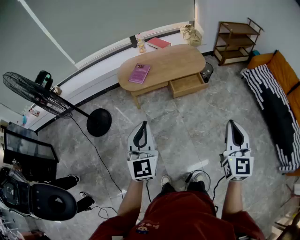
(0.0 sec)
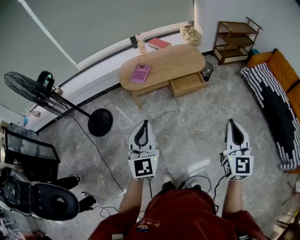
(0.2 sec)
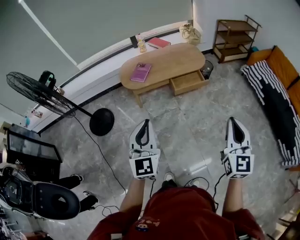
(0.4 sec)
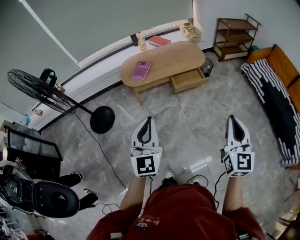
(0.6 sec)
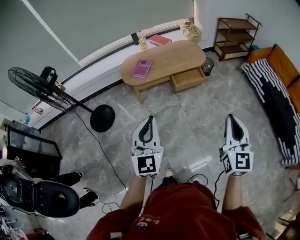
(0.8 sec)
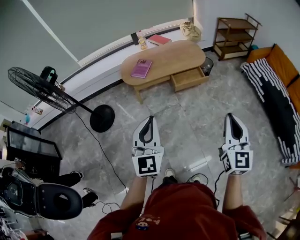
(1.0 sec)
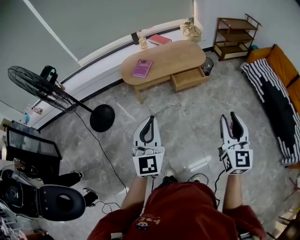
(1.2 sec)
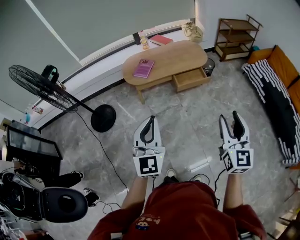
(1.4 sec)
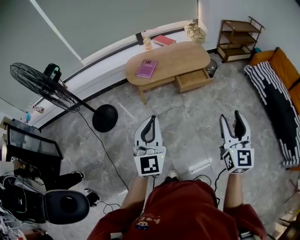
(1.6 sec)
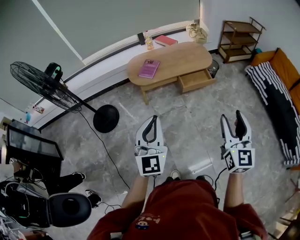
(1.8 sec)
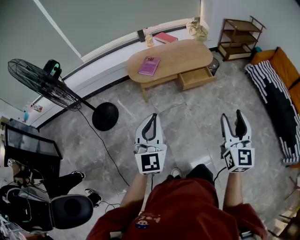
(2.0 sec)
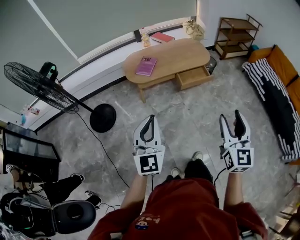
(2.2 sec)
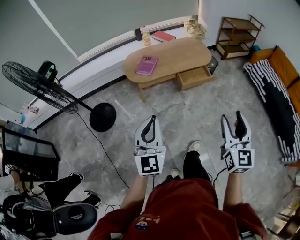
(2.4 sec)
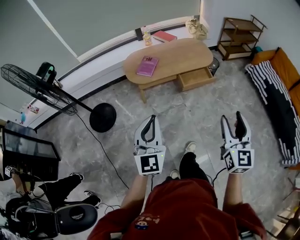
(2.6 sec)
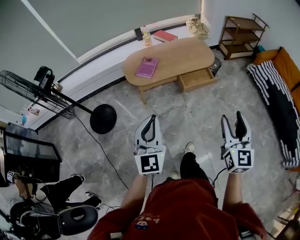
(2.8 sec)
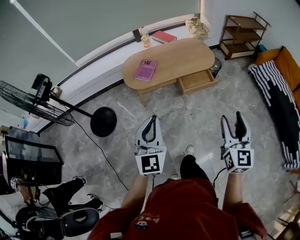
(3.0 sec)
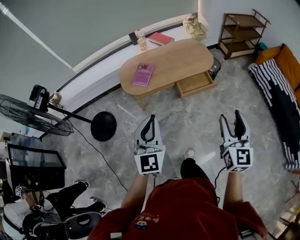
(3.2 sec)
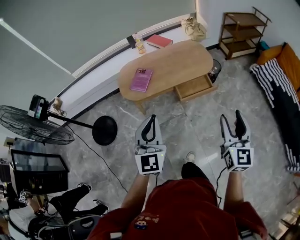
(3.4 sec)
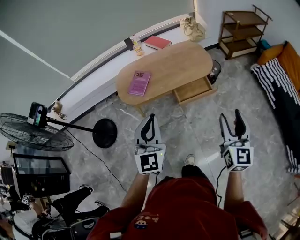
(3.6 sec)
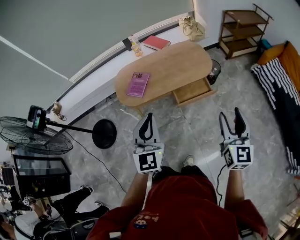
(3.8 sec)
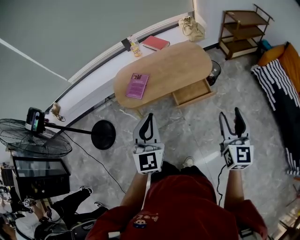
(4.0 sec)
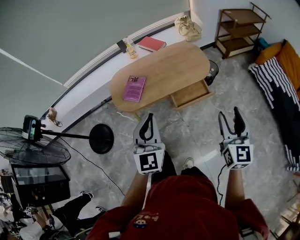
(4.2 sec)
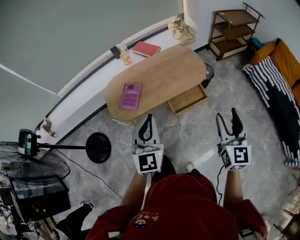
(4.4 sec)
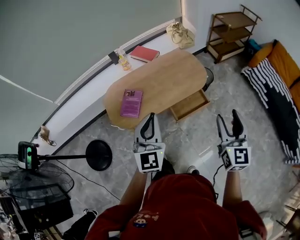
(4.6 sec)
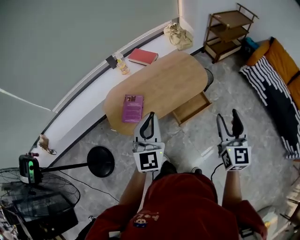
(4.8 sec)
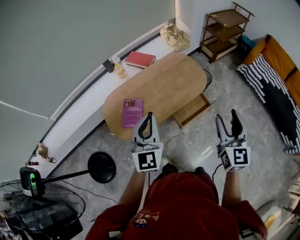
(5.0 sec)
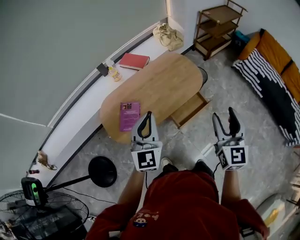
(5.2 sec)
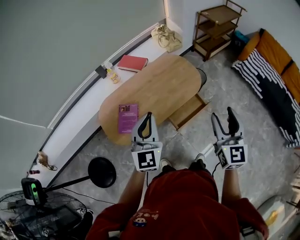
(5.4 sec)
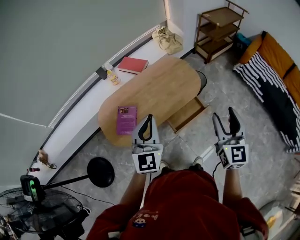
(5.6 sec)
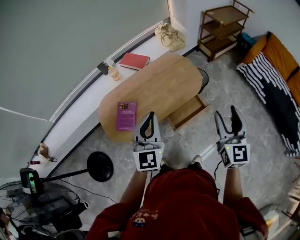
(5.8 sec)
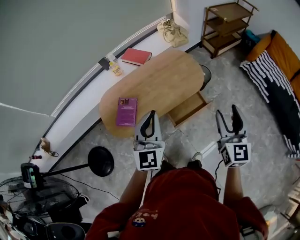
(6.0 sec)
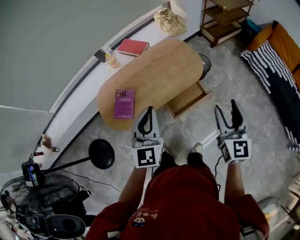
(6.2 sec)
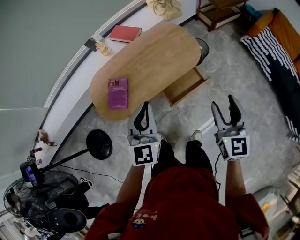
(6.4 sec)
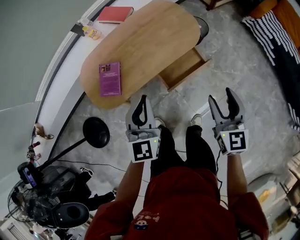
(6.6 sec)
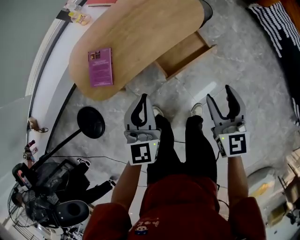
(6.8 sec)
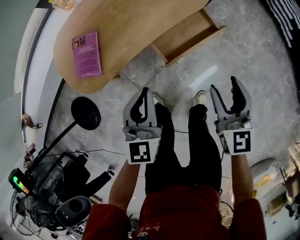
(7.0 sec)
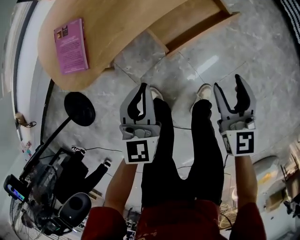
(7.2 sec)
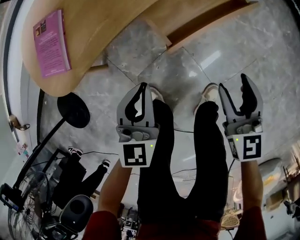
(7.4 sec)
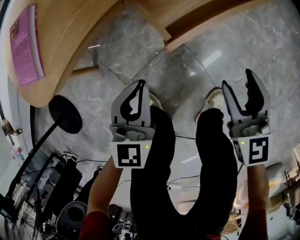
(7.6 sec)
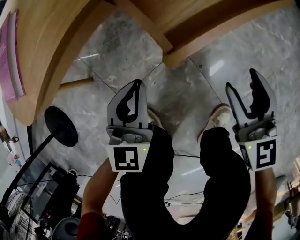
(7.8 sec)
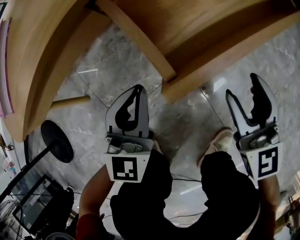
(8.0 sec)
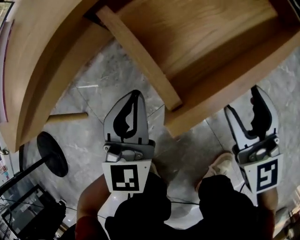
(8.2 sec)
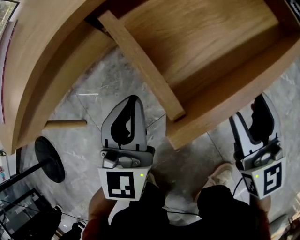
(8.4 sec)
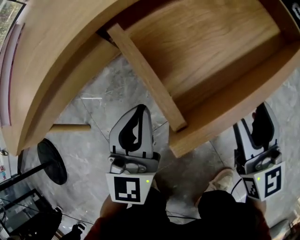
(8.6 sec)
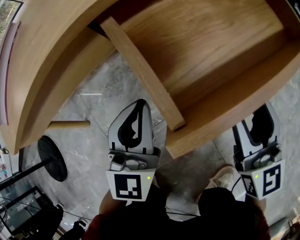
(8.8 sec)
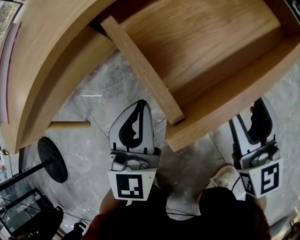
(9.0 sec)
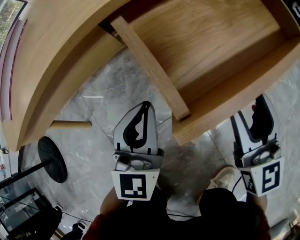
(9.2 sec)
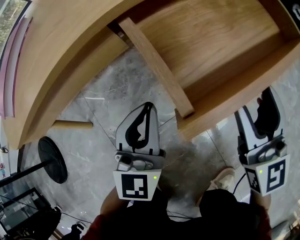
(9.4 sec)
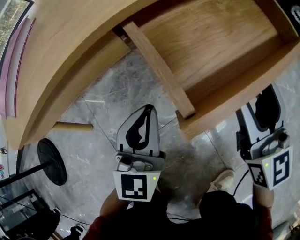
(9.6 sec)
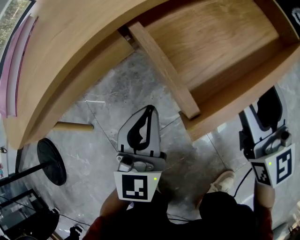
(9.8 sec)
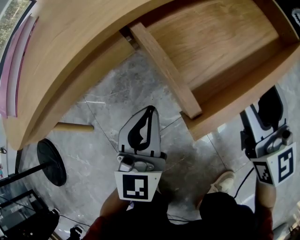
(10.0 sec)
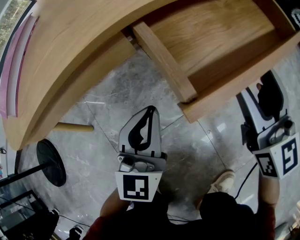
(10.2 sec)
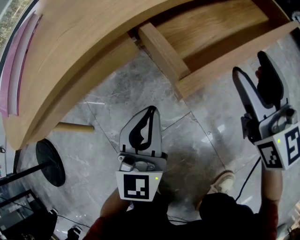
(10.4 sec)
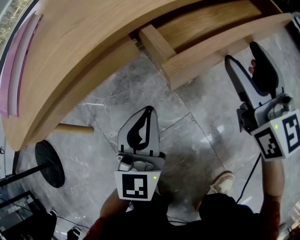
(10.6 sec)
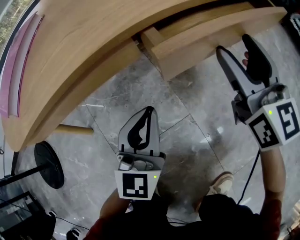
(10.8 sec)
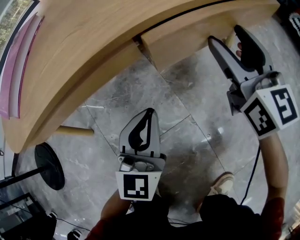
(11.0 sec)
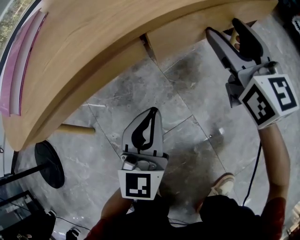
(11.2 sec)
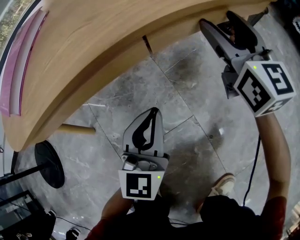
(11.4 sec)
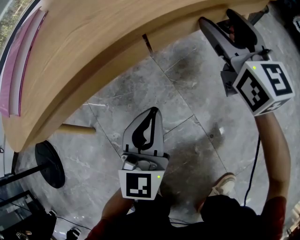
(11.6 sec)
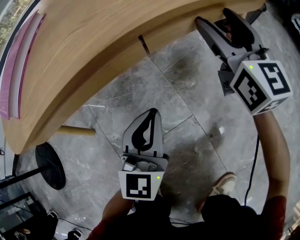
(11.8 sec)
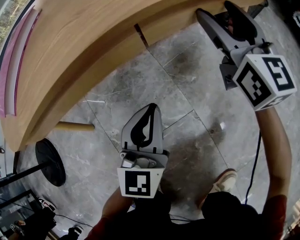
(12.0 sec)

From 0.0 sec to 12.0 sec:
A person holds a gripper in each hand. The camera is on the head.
From 0.0 sec to 1.6 sec: The right gripper heads to the left, covering about 5 cm, and opens, while the left gripper is displaced backward by approximately 5 cm.
From 1.6 sec to 3.0 sec: Both grippers move forward, approximately 15 cm.
From 3.0 sec to 4.4 sec: Both grippers move forward, some 30 cm.
From 4.4 sec to 6.0 sec: Both grippers travel together forward, approximately 15 cm.
From 6.0 sec to 7.6 sec: The two grippers go some 60 cm downward. The right gripper rotates about 20 degrees. Meanwhile the left gripper turns by roughly 30 degrees.
From 7.6 sec to 9.0 sec: The grippers both shift downward and forward by roughly 15 cm. The left gripper rotates about 20 degrees.
From 9.0 sec to 10.4 sec: The right gripper travels forward and upward by roughly 10 cm.
From 10.4 sec to 12.0 sec: The right gripper travels forward by some 10 cm.

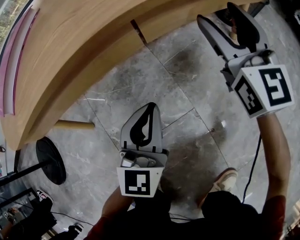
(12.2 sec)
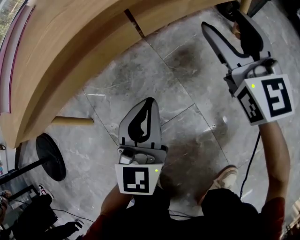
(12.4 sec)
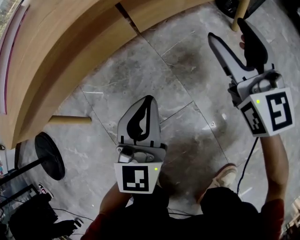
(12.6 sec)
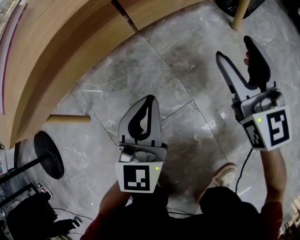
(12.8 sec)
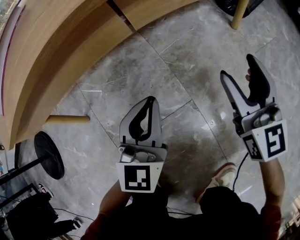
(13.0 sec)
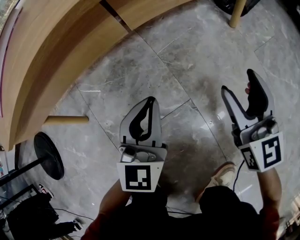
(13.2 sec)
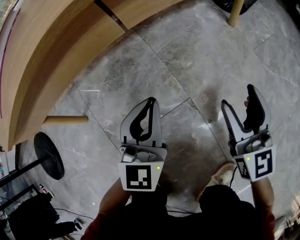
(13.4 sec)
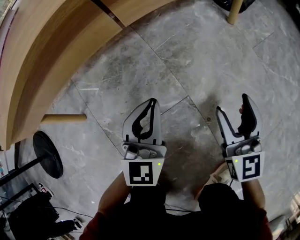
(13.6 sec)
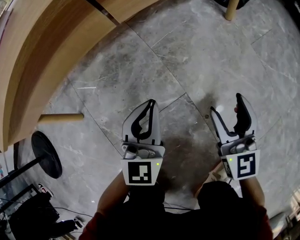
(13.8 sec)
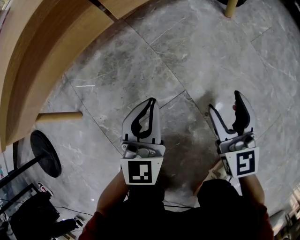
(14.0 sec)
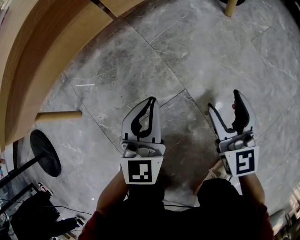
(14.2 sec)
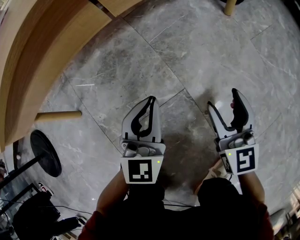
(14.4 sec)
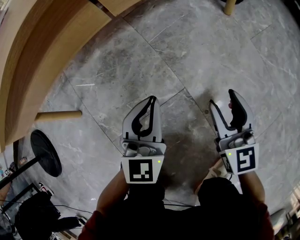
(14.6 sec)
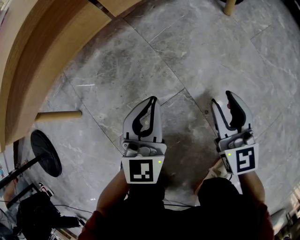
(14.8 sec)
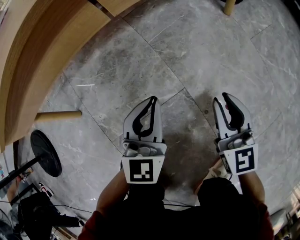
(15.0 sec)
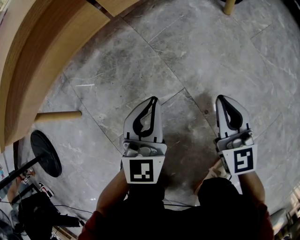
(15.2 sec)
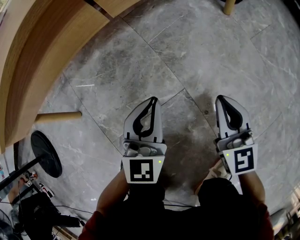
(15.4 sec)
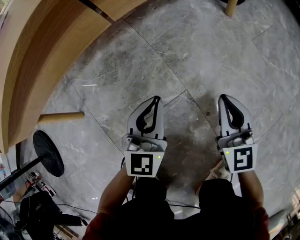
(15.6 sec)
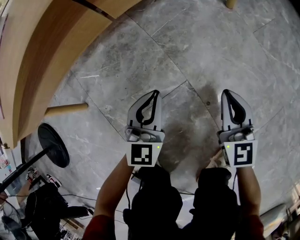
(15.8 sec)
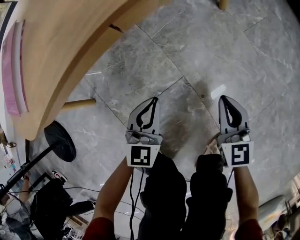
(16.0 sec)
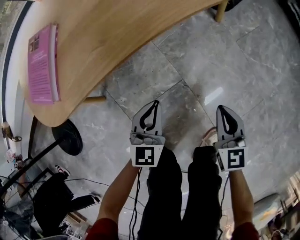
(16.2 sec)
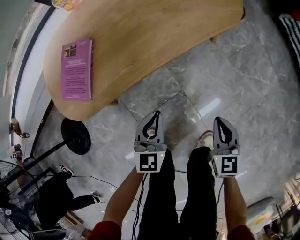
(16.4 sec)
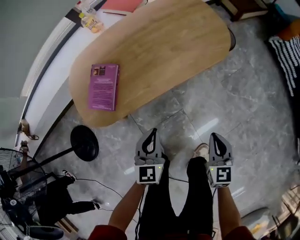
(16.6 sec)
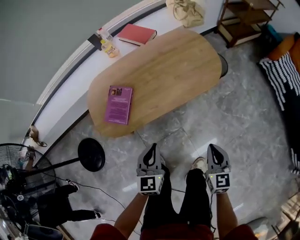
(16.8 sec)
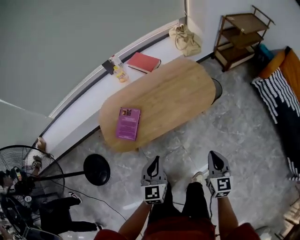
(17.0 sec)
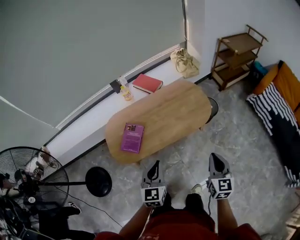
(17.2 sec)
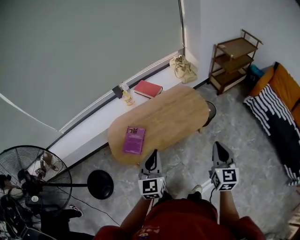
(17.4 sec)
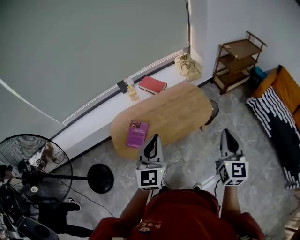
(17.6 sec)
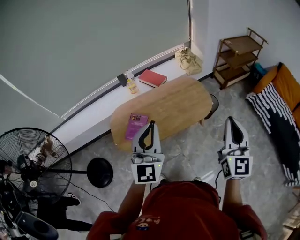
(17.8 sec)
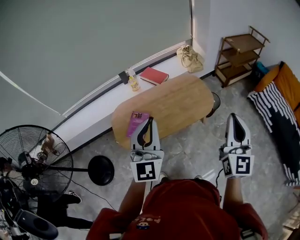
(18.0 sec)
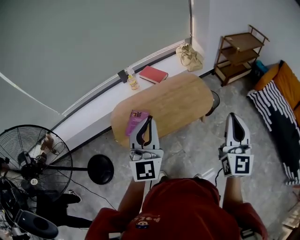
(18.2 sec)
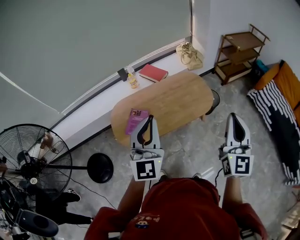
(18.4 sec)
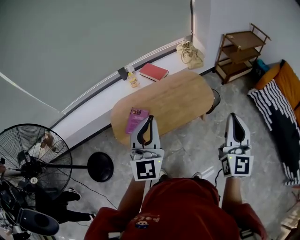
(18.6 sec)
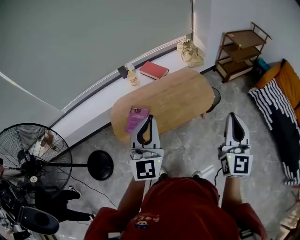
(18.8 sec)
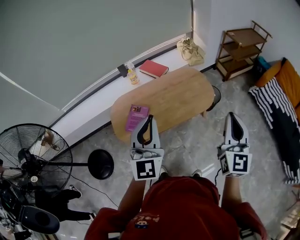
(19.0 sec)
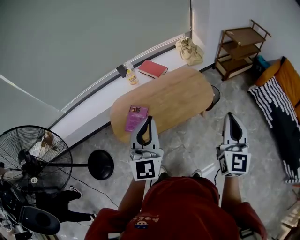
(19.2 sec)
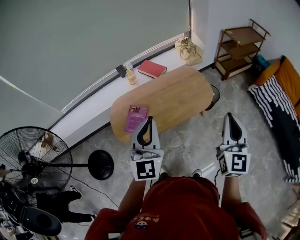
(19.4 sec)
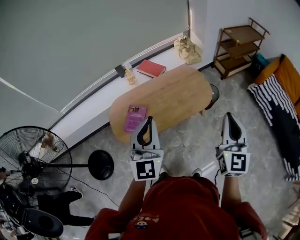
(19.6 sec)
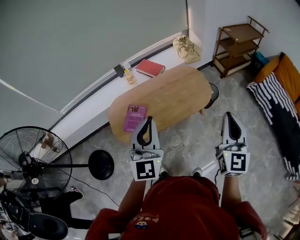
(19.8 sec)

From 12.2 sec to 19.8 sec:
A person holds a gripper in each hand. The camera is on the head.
From 12.2 sec to 13.8 sec: The left gripper shifts some 5 cm downward. Meanwhile the right gripper is displaced backward and downward by some 25 cm.
From 13.8 sec to 15.2 sec: The right gripper closes its fingers.
From 15.2 sec to 16.8 sec: The two grippers go roughly 50 cm upward.
From 16.8 sec to 18.2 sec: The two grippers go approximately 40 cm upward. The right gripper tilts its fingers some 40 degrees upward, while the left gripper points its fingers roughly 40 degrees further upward.
From 18.2 sec to 19.8 sec: The grippers make only small movements.

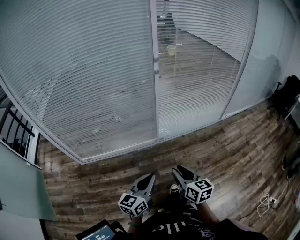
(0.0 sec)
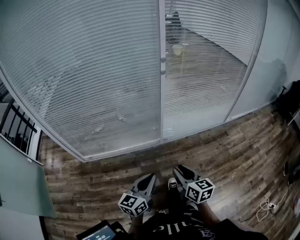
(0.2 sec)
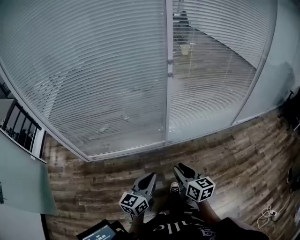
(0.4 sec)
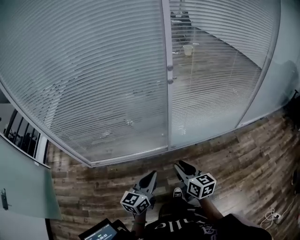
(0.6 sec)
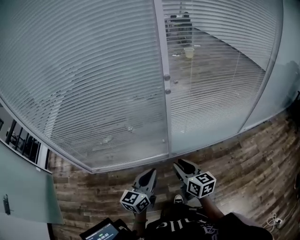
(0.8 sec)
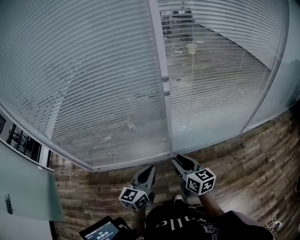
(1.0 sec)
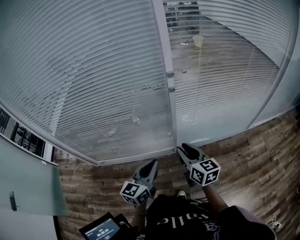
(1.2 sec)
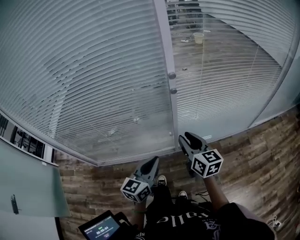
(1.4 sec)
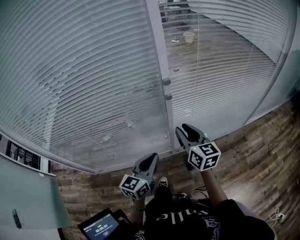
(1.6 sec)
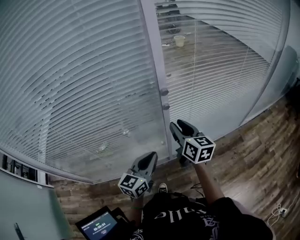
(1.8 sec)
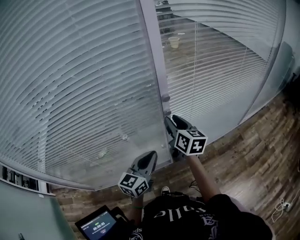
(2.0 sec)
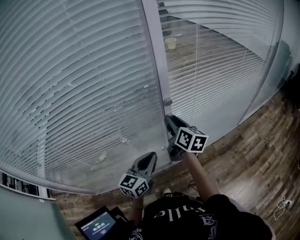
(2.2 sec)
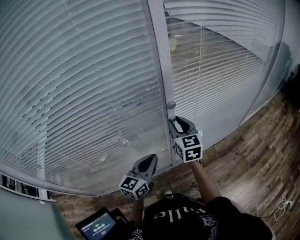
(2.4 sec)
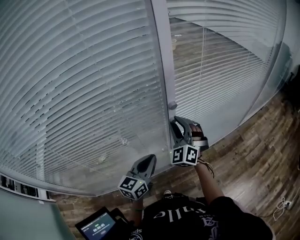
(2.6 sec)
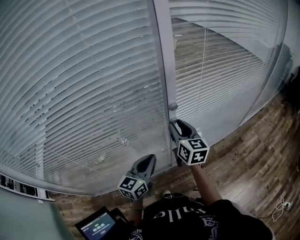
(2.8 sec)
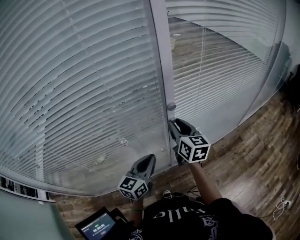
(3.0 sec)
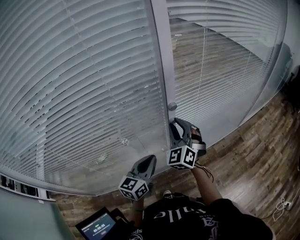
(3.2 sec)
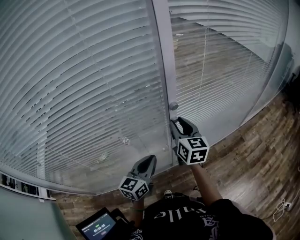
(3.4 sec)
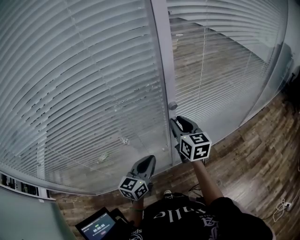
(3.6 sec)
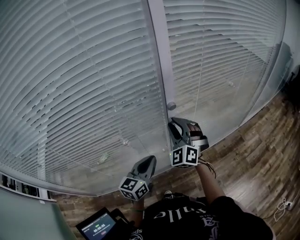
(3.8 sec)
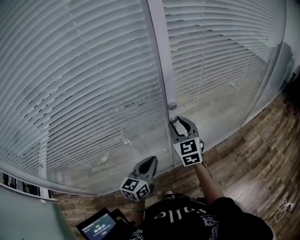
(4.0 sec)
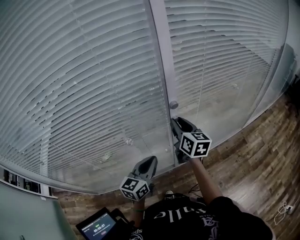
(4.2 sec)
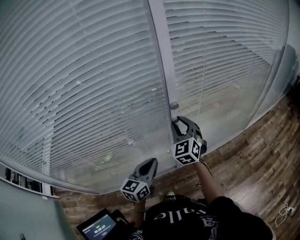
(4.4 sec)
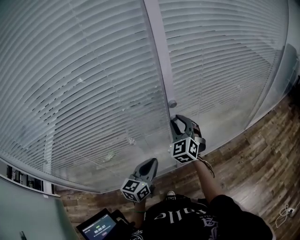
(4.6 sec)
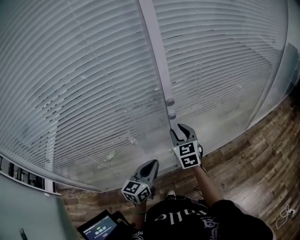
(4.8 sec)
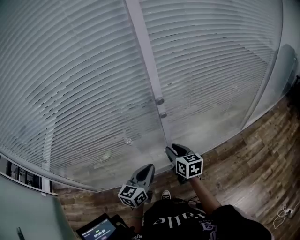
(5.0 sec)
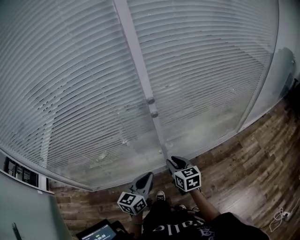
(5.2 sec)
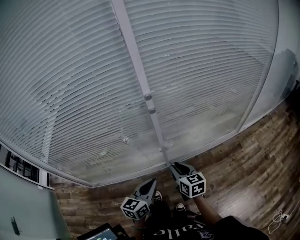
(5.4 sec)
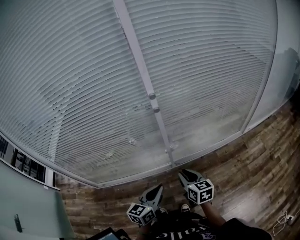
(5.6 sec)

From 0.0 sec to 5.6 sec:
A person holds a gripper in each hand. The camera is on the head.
From 0.0 sec to 1.4 sec: Both grippers move forward, some 40 cm.
From 1.4 sec to 2.8 sec: The left gripper travels forward and to the left by some 20 cm; the right gripper is displaced forward by about 20 cm.
From 4.2 sec to 5.6 sec: The left gripper is displaced backward and to the right by roughly 30 cm. Meanwhile the right gripper shifts roughly 35 cm backward, to the right and downward, and rotates about 20 degrees.
